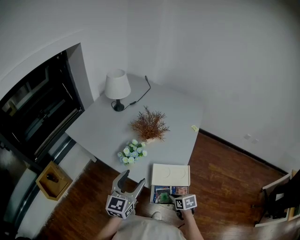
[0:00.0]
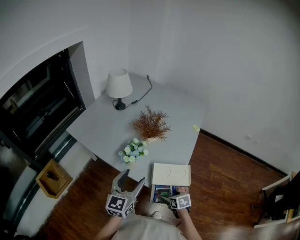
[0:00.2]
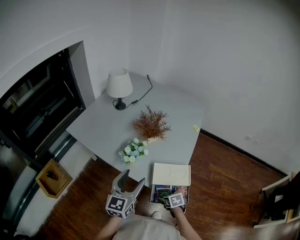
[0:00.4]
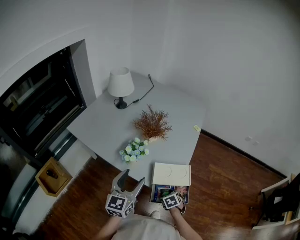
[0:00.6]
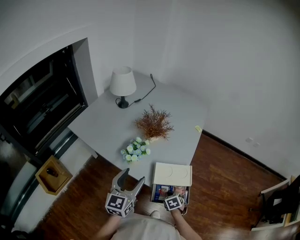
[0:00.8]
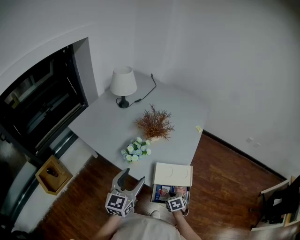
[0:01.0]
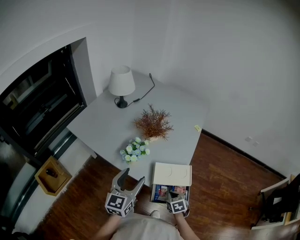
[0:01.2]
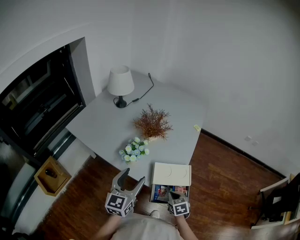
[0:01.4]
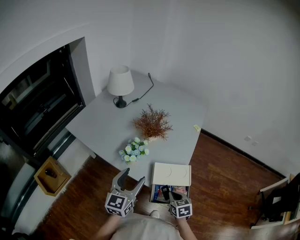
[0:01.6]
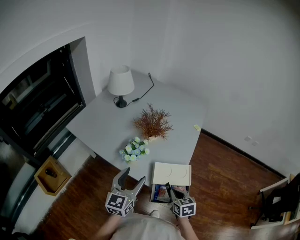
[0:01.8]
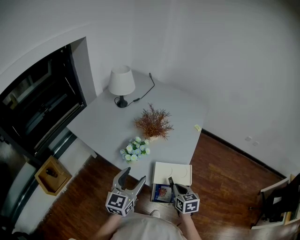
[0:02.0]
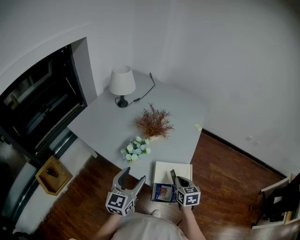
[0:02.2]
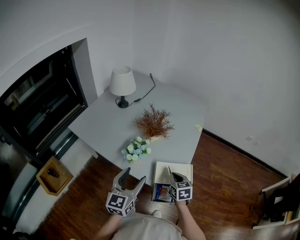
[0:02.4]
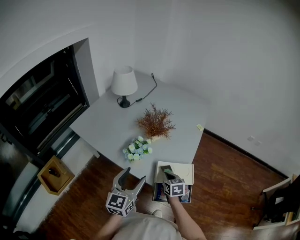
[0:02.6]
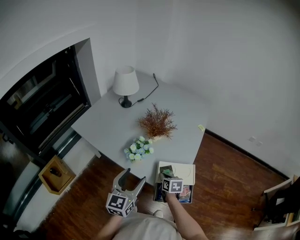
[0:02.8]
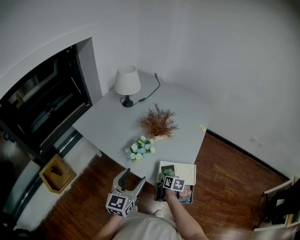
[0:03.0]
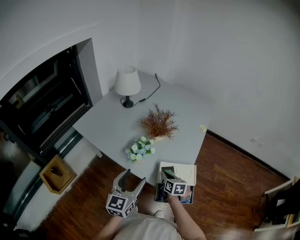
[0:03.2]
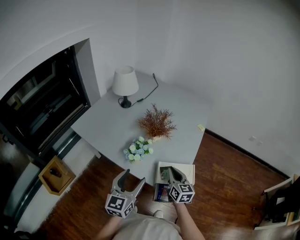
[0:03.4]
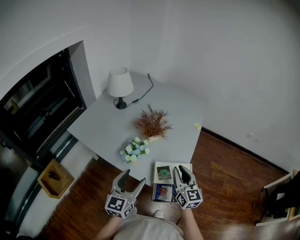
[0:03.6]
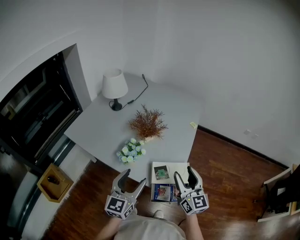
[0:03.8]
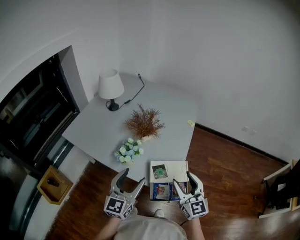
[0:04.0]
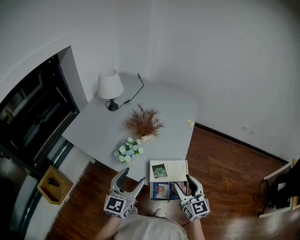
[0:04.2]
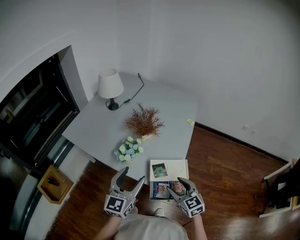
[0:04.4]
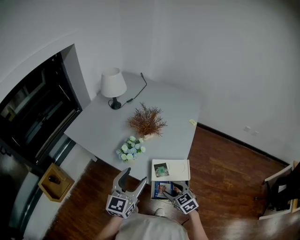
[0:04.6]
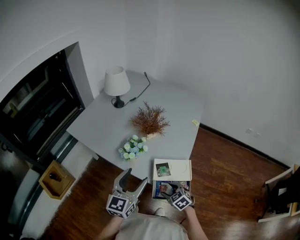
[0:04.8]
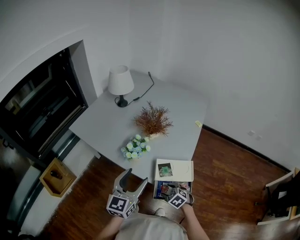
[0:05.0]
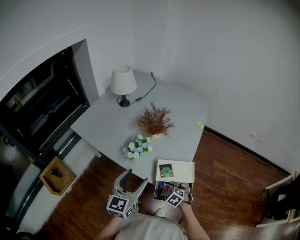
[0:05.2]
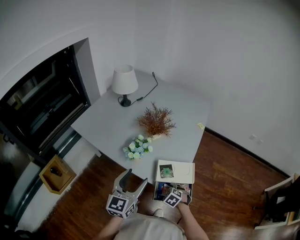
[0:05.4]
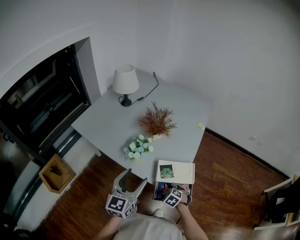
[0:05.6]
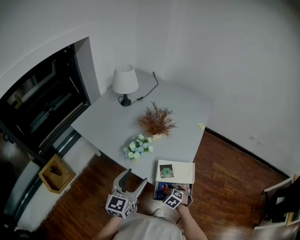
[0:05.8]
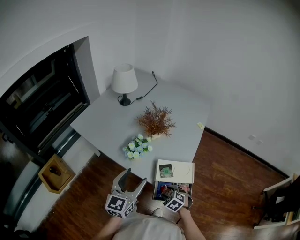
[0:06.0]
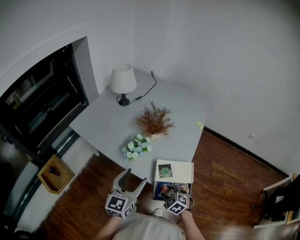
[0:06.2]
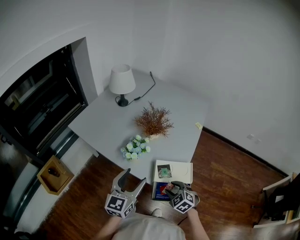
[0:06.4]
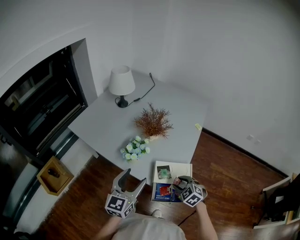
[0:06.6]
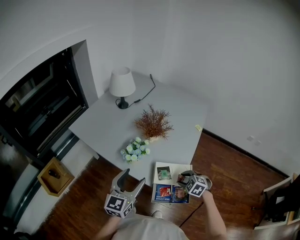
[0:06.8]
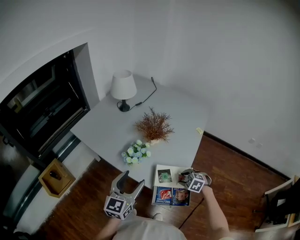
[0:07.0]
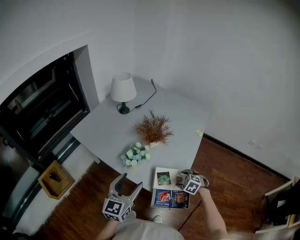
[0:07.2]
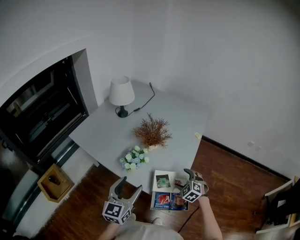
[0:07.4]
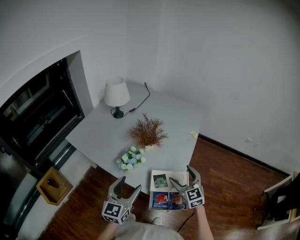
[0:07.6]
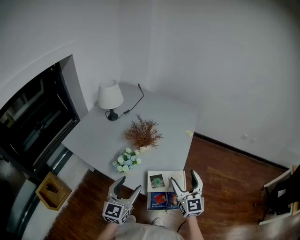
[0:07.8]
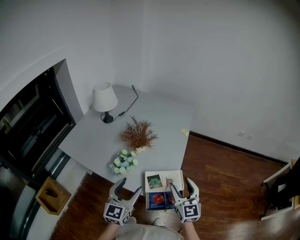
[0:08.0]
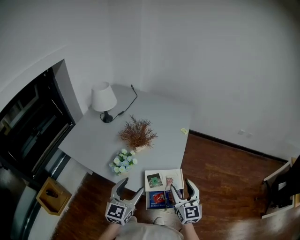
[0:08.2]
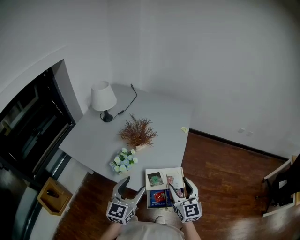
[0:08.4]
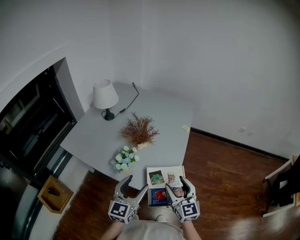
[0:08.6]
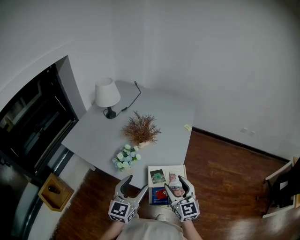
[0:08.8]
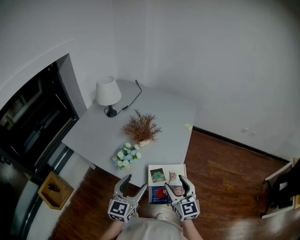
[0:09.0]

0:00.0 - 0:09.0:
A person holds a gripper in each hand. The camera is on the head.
0:00.0 - 0:01.6: The right gripper moves upward, about 5 cm, and opens, then closes again.
0:01.6 - 0:03.0: The right gripper is displaced forward, to the left and downward by about 15 cm, and swivels some 30 degrees.
0:03.0 - 0:04.4: The right gripper heads upward, backward and to the right, covering about 20 cm, rolls counterclockwise, seen from behind, by some 40 degrees, and opens up. Meanwhile the left gripper moves approximately 5 cm.
0:04.4 - 0:06.0: The right gripper moves downward, some 20 cm, and angles its fingers downward, by about 40 degrees.
0:06.0 - 0:07.6: The right gripper goes up and down, roughly 20 cm each way, reversing 2 times, angles its fingers upward, by approximately 50 degrees, and opens its fingers.
0:07.6 - 0:09.0: The right gripper shifts about 10 cm backward.

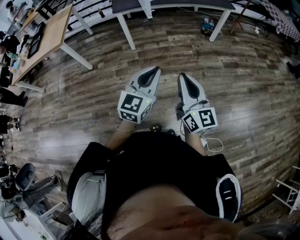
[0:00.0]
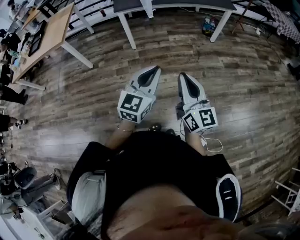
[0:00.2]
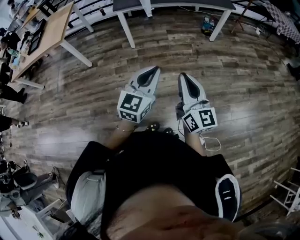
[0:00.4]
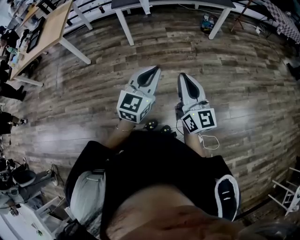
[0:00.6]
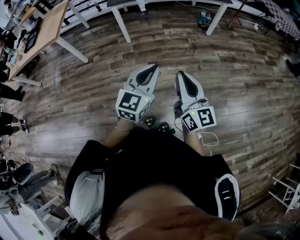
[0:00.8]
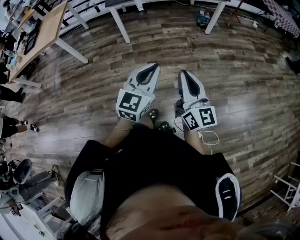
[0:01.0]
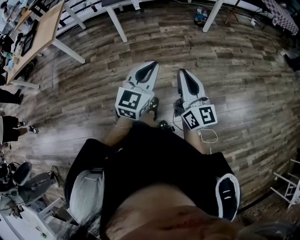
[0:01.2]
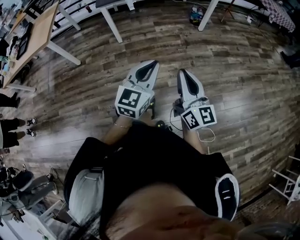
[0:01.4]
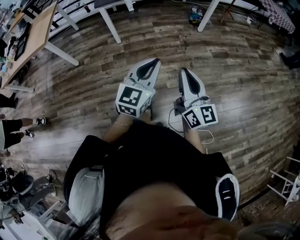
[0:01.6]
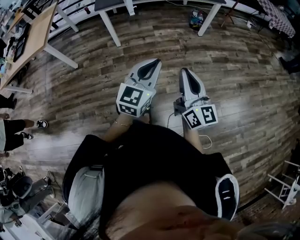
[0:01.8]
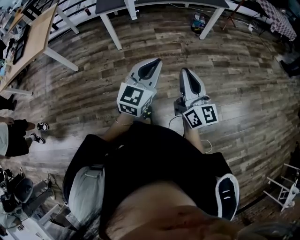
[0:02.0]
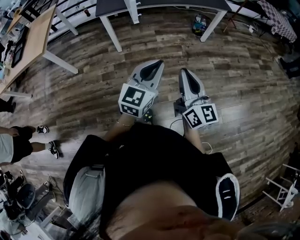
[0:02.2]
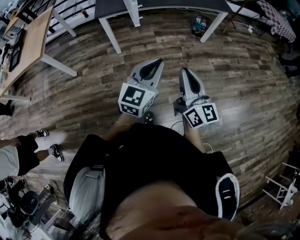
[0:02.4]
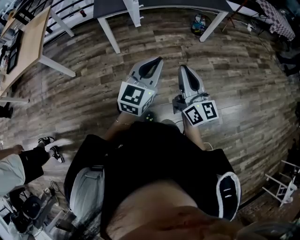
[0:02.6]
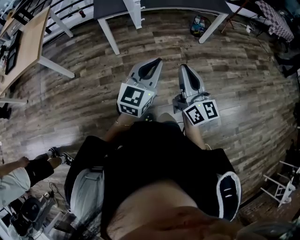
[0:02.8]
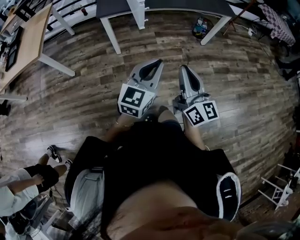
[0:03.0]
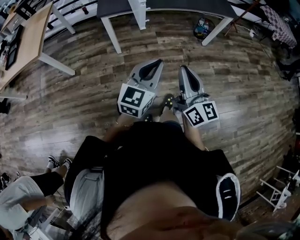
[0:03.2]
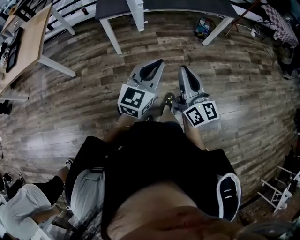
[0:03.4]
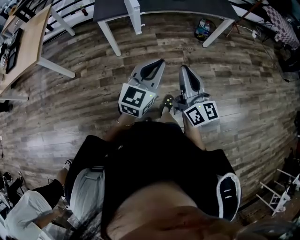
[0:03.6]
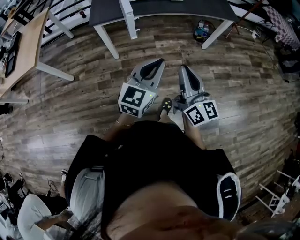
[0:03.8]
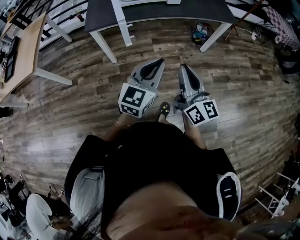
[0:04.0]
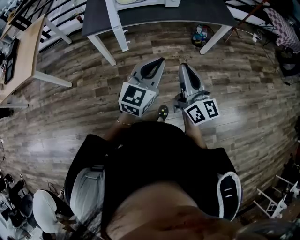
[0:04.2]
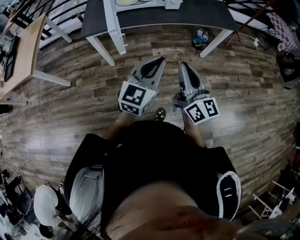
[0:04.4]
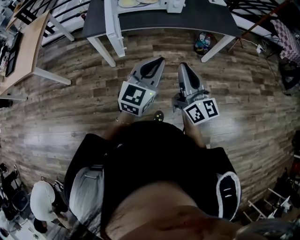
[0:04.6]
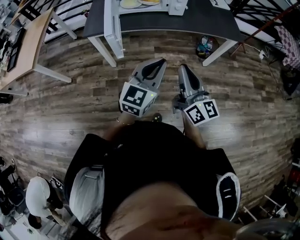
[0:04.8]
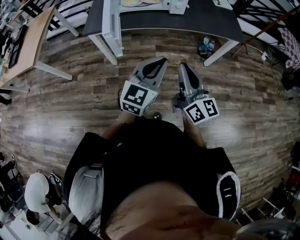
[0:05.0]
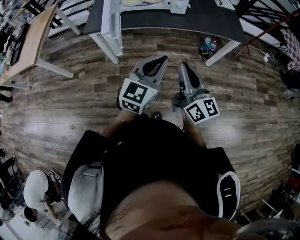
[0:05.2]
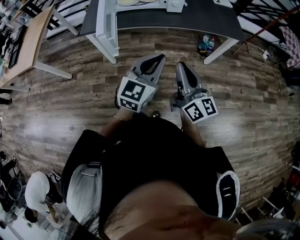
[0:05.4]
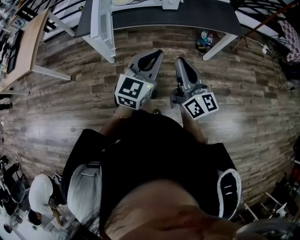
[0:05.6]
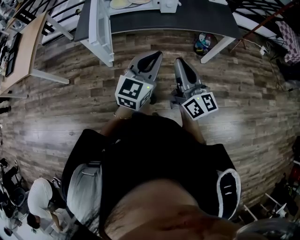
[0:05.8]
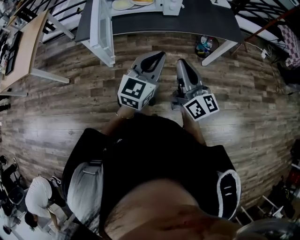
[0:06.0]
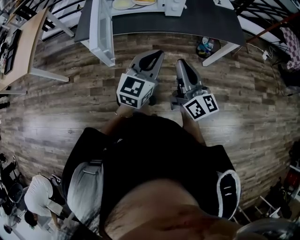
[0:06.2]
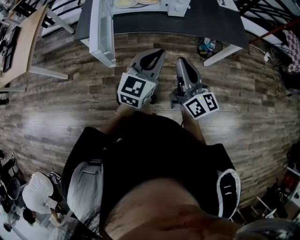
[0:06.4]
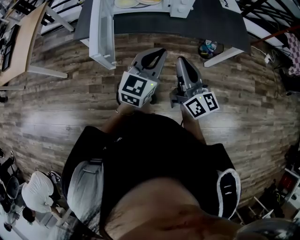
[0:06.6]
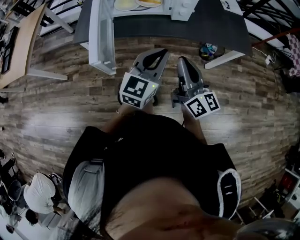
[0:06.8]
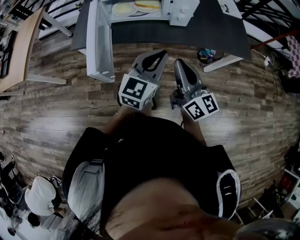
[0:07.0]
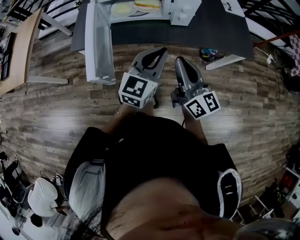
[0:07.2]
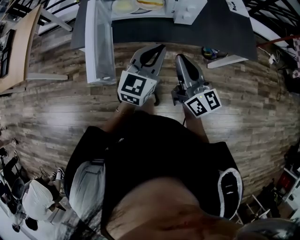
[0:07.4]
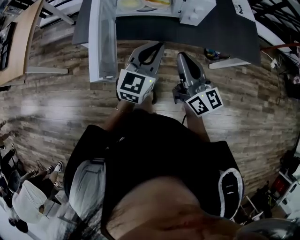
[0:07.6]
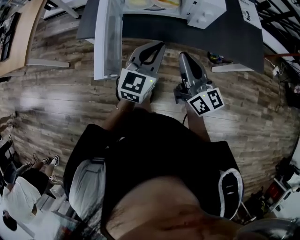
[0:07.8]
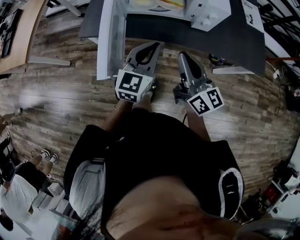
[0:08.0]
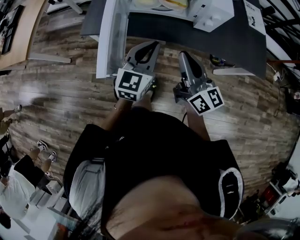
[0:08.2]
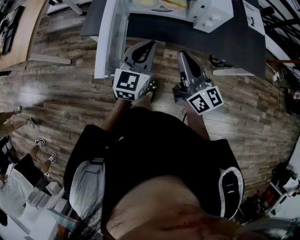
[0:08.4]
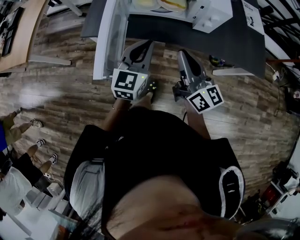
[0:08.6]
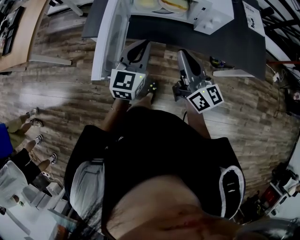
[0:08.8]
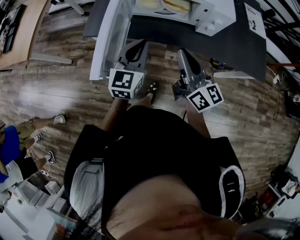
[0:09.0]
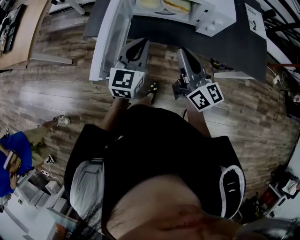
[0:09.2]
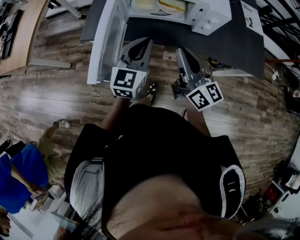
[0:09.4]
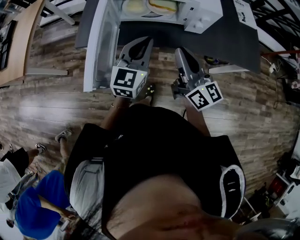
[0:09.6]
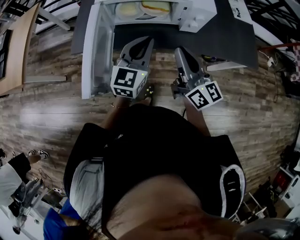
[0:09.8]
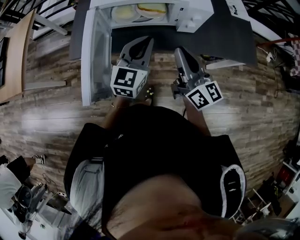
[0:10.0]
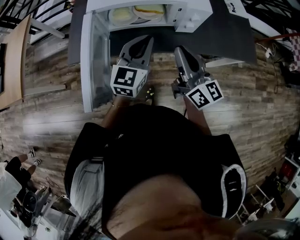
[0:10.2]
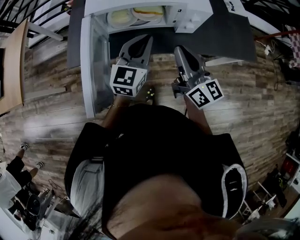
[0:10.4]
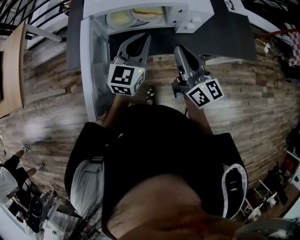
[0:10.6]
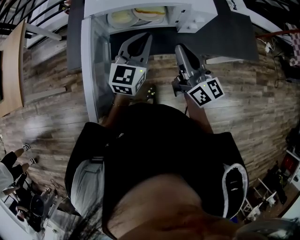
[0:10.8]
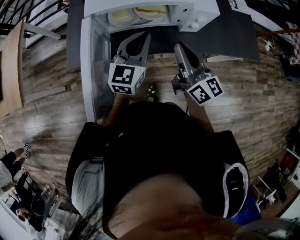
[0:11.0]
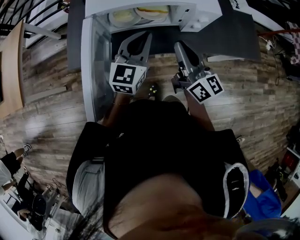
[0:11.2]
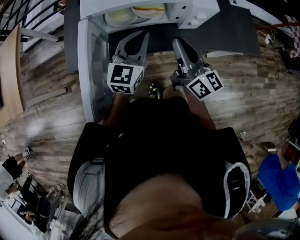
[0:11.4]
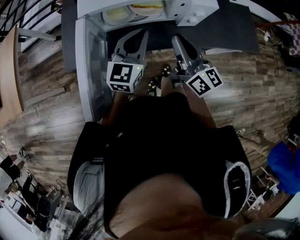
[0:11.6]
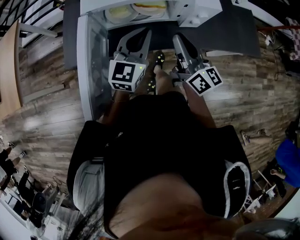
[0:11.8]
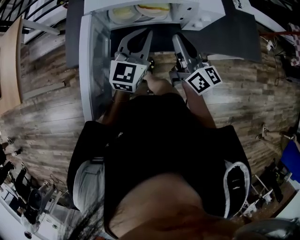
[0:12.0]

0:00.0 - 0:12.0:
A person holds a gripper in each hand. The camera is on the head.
0:00.0 - 0:01.6: The grippers both shift to the right by some 10 cm.
0:01.6 - 0:03.0: The two grippers go some 25 cm forward and to the left.
0:03.0 - 0:04.4: Both grippers travel together forward and to the right, approximately 25 cm.
0:04.4 - 0:06.0: Both grippers move forward and to the right, approximately 15 cm.
0:06.0 - 0:07.6: The grippers both shift forward by about 20 cm.
0:07.6 - 0:09.0: The left gripper heads to the left, covering some 10 cm. The right gripper is displaced to the left by roughly 5 cm.
0:09.0 - 0:10.4: The left gripper travels to the right and forward by roughly 10 cm, while the right gripper moves forward, about 5 cm.
0:10.4 - 0:12.0: The right gripper is displaced forward by about 5 cm.

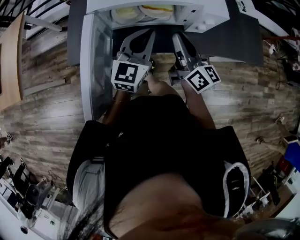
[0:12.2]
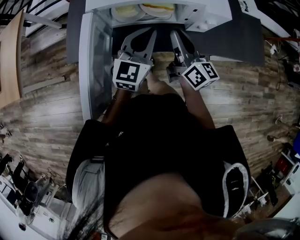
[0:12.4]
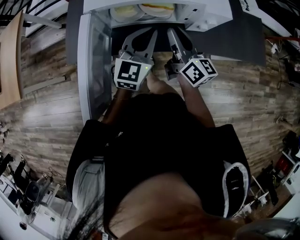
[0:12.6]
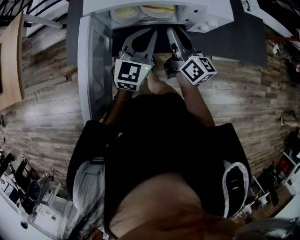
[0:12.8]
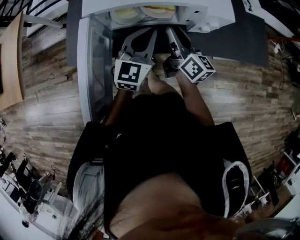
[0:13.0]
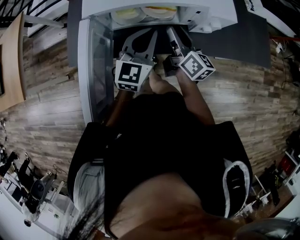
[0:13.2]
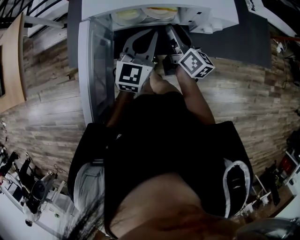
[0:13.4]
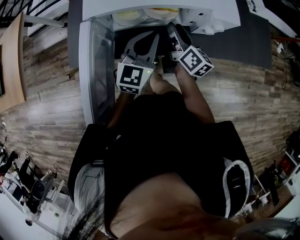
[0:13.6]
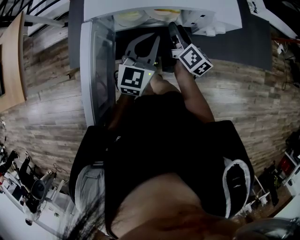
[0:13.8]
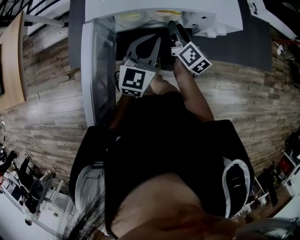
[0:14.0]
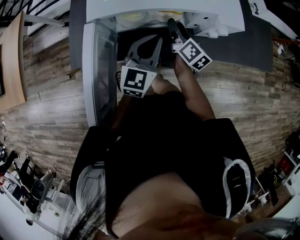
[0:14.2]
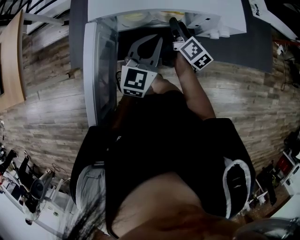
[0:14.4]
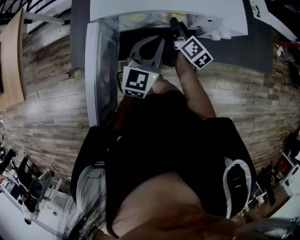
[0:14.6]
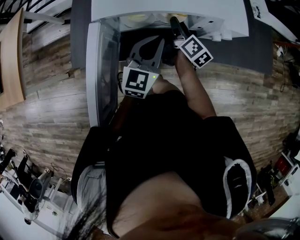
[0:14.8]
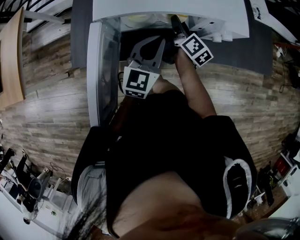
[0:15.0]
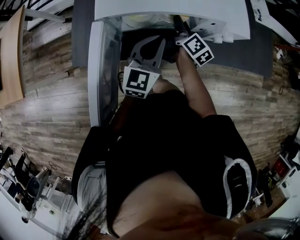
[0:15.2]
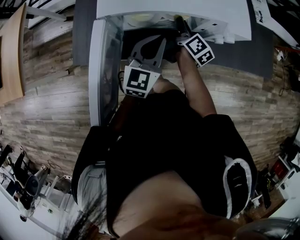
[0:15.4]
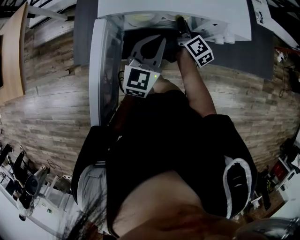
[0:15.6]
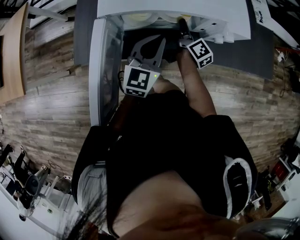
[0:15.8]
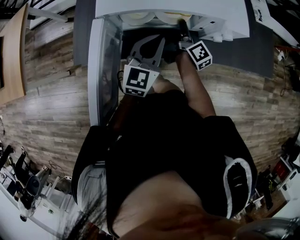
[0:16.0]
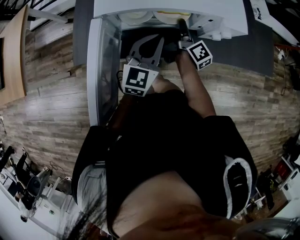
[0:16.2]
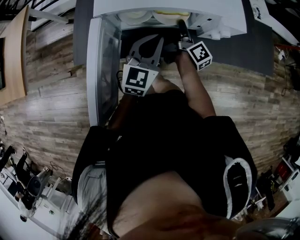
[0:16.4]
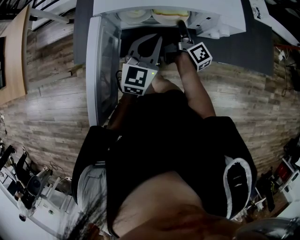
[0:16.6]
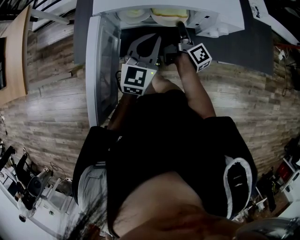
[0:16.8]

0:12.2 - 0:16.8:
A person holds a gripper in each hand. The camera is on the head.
0:12.2 - 0:13.8: The right gripper moves downward and forward, about 15 cm, rotates about 30 degrees, and opens its fingers.
0:13.8 - 0:15.2: The right gripper shifts by about 5 cm.
0:15.2 - 0:16.8: The right gripper changes its angle by approximately 30 degrees, and closes its fingers.
